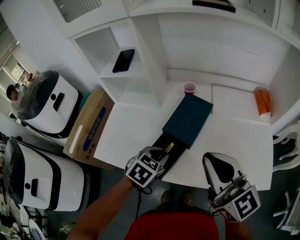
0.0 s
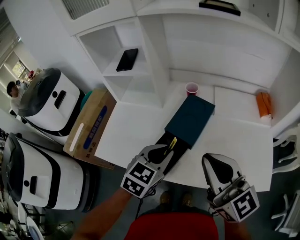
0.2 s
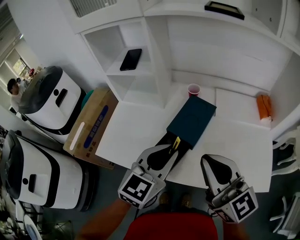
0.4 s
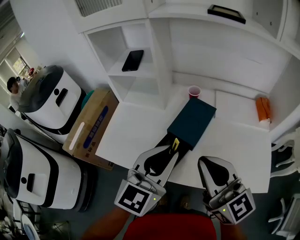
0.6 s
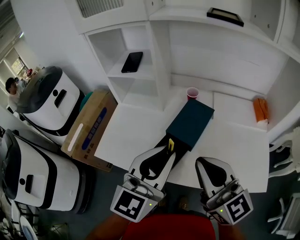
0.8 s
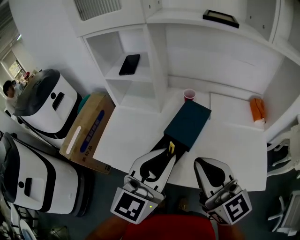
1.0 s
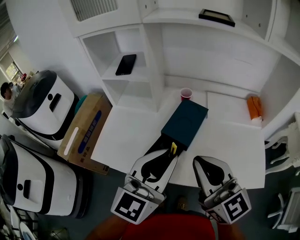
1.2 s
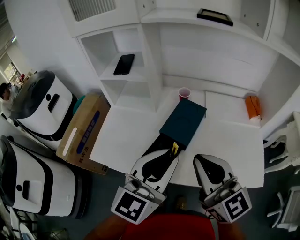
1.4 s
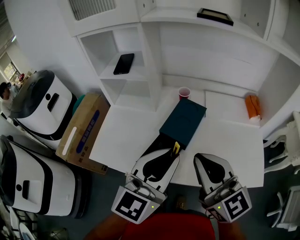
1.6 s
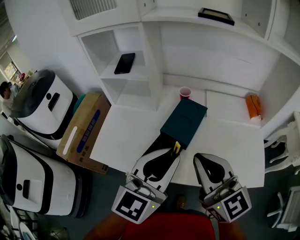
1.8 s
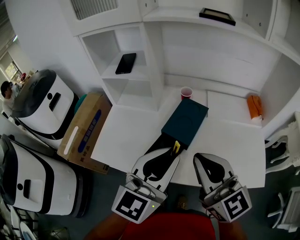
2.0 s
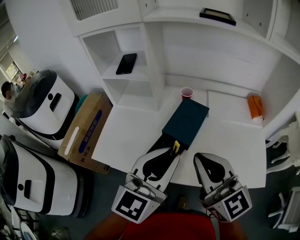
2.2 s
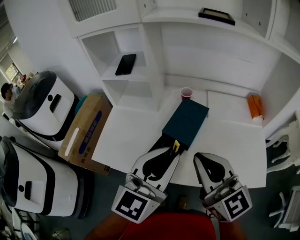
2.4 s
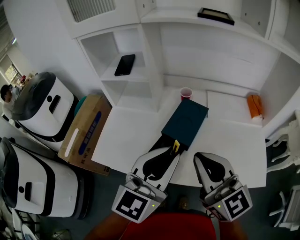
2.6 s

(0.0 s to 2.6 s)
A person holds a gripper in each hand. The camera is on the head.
0.0 s - 1.2 s: The left gripper shifts some 20 cm upward, and tilts its fingers approximately 50 degrees upward.
1.2 s - 2.6 s: Neither gripper changes place.

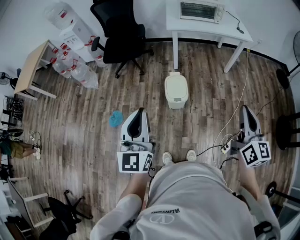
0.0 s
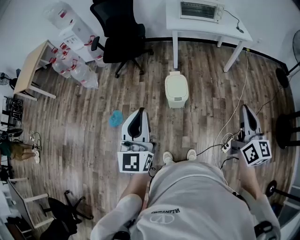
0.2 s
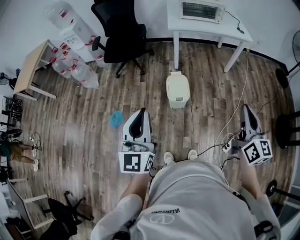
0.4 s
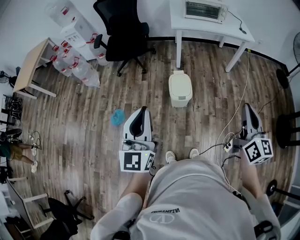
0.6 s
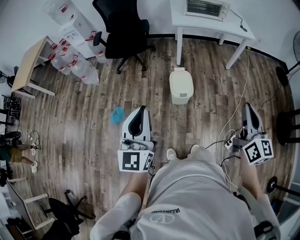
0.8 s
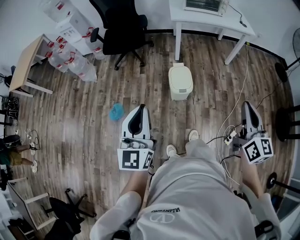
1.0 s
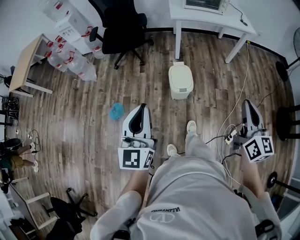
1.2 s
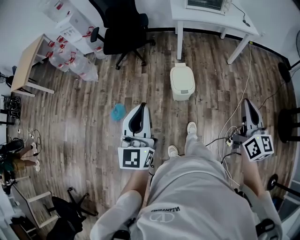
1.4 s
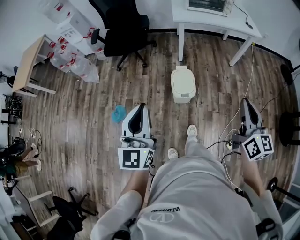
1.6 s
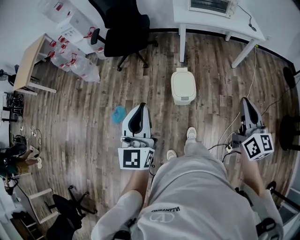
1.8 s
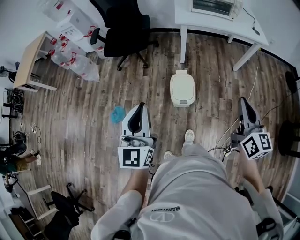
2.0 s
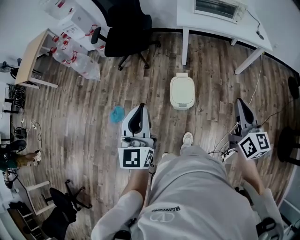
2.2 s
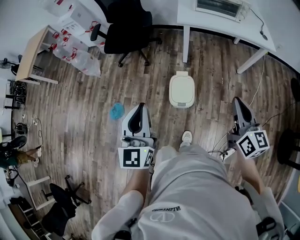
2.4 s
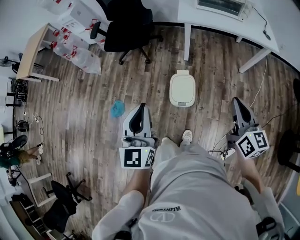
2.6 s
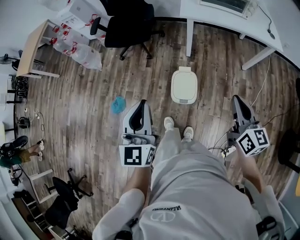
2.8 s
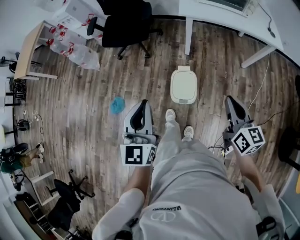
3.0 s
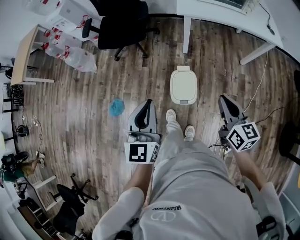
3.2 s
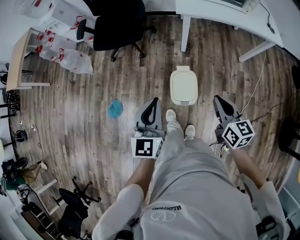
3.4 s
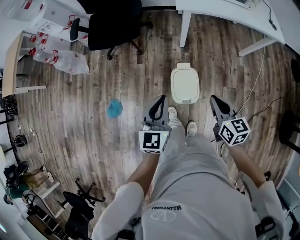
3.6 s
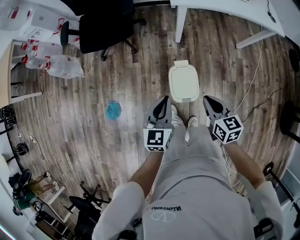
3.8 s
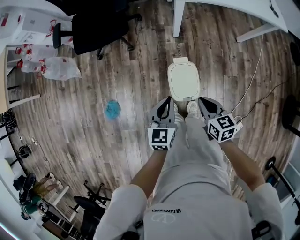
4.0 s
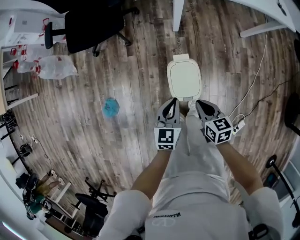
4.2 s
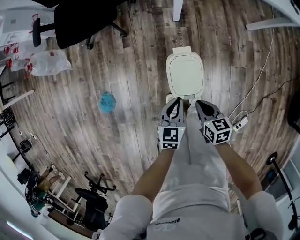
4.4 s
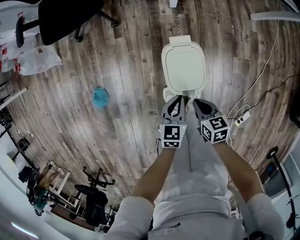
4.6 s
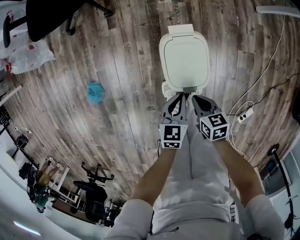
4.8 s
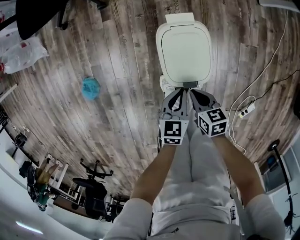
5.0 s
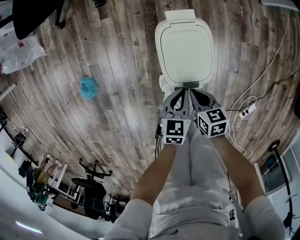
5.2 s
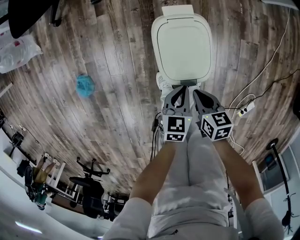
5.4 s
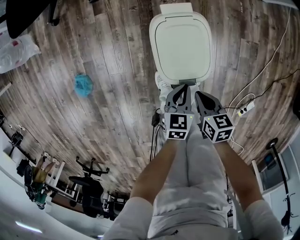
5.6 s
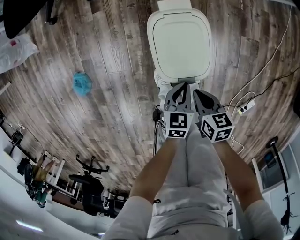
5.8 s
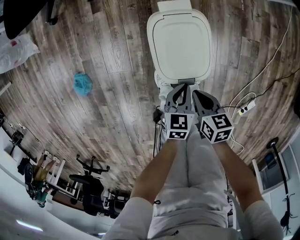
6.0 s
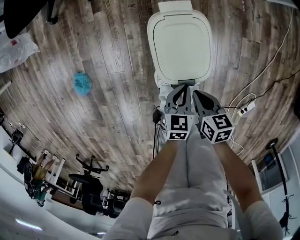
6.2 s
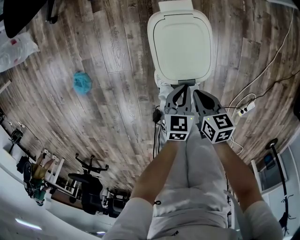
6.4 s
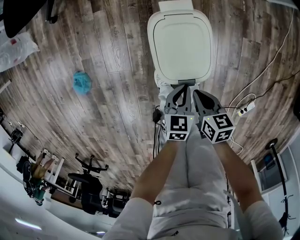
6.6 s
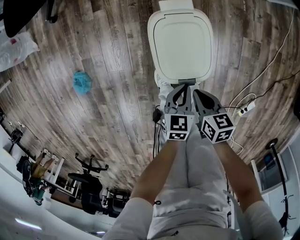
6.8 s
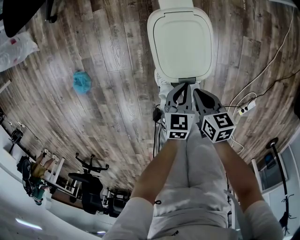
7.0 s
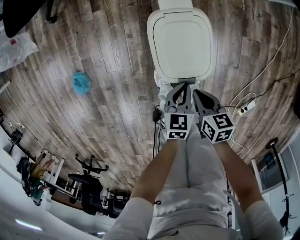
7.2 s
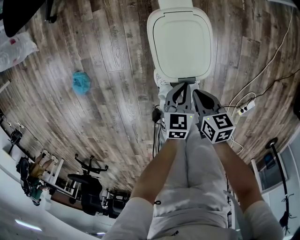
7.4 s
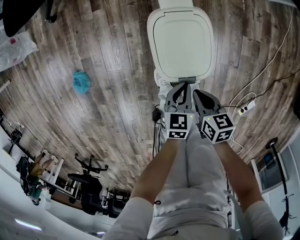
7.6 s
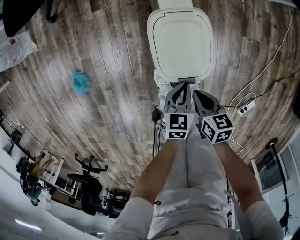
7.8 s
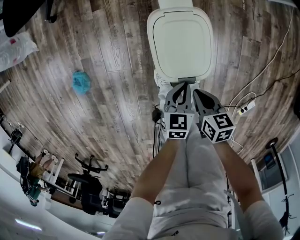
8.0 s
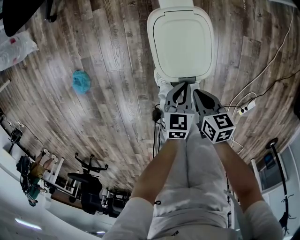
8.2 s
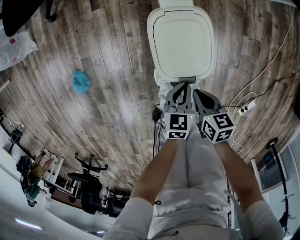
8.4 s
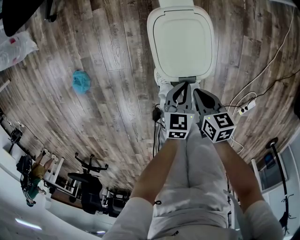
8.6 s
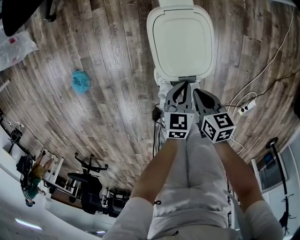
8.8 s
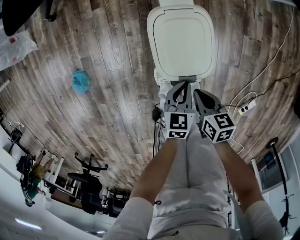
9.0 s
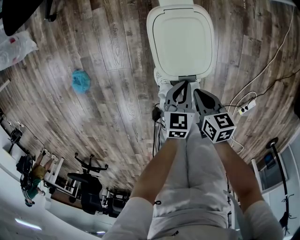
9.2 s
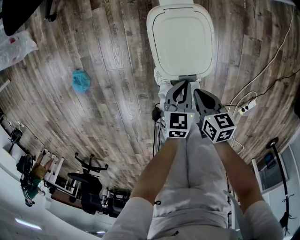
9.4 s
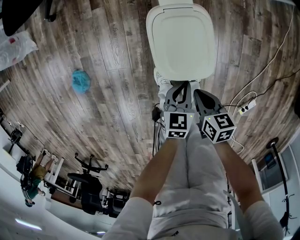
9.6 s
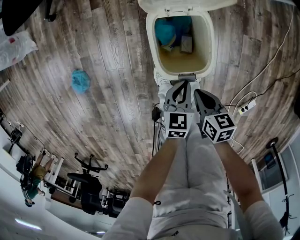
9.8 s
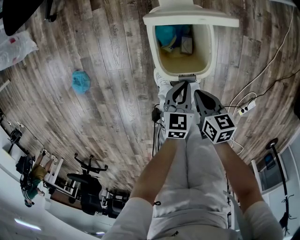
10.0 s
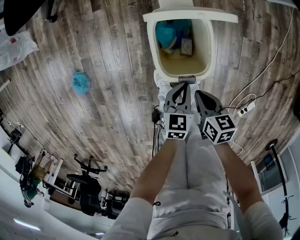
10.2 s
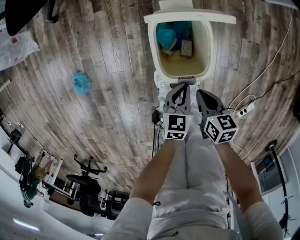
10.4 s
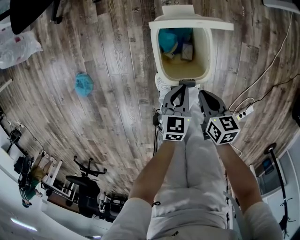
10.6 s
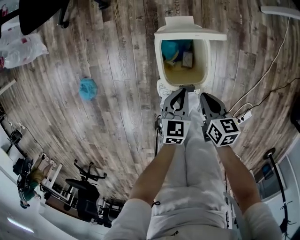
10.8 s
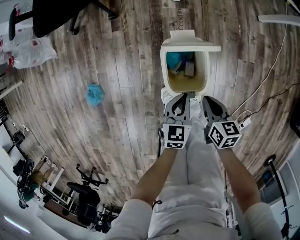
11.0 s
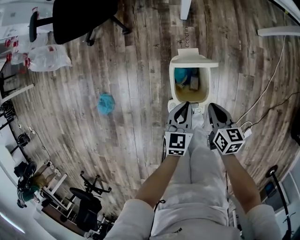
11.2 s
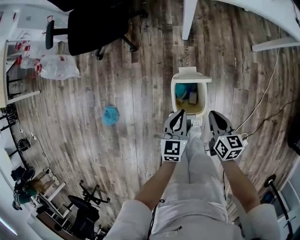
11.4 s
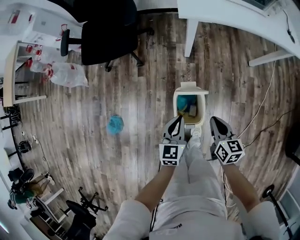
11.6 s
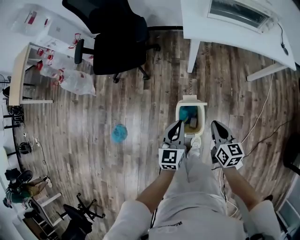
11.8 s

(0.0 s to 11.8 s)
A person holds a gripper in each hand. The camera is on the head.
0.0 s - 1.4 s: Both grippers travel together to the left, about 5 cm.
1.4 s - 3.0 s: The left gripper shifts about 25 cm forward and to the right. The right gripper travels forward by approximately 25 cm, and turns by approximately 20 degrees.
3.0 s - 4.4 s: The grippers both shift downward by approximately 40 cm. The left gripper tilts its fingers roughly 30 degrees downward. The right gripper points its fingers approximately 30 degrees further downward.
4.4 s - 6.0 s: Both grippers move downward, about 25 cm.
6.0 s - 8.8 s: The two grippers keep their place.
8.8 s - 10.4 s: The grippers make only small movements.
10.4 s - 11.8 s: Both grippers move upward, roughly 40 cm. The right gripper turns by some 30 degrees. Meanwhile the left gripper swivels some 30 degrees.

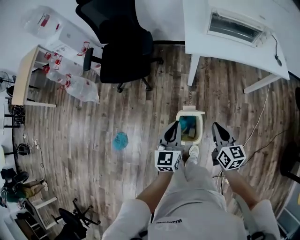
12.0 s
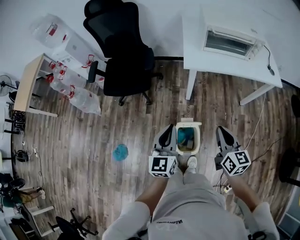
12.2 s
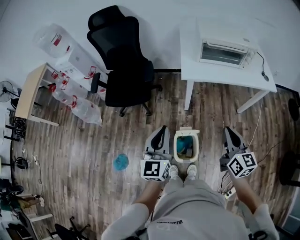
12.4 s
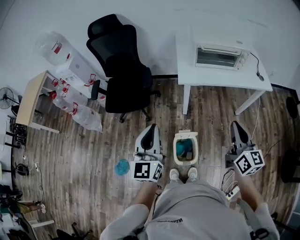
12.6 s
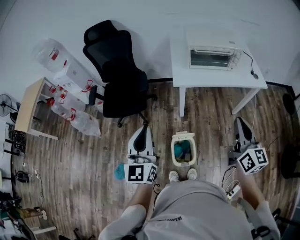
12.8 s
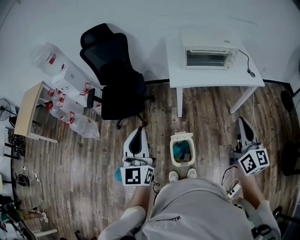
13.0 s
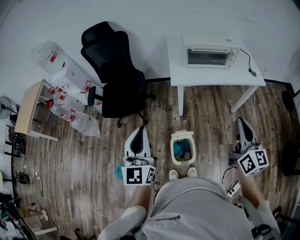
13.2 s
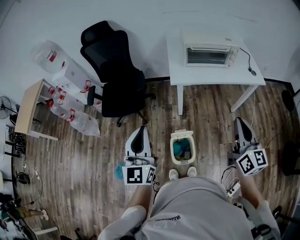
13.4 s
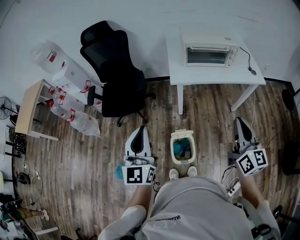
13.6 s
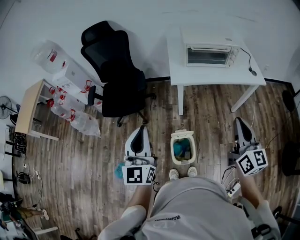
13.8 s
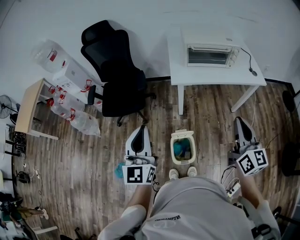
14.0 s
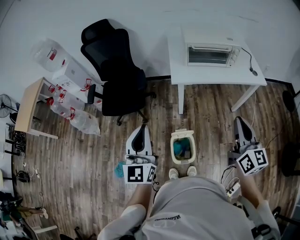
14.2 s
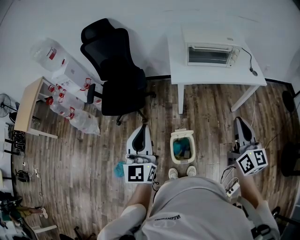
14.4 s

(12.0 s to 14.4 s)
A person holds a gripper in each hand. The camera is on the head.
12.0 s - 13.2 s: The left gripper travels upward by approximately 30 cm, and turns by some 30 degrees; the right gripper heads upward and to the right, covering some 30 cm, and swivels roughly 30 degrees.
13.2 s - 14.4 s: There are only small adjustments of the grippers.

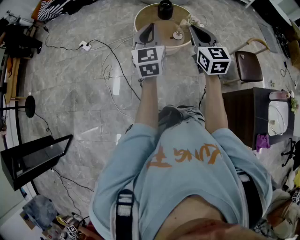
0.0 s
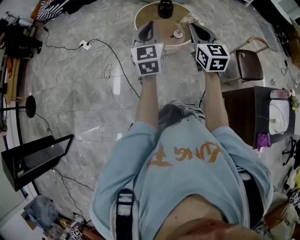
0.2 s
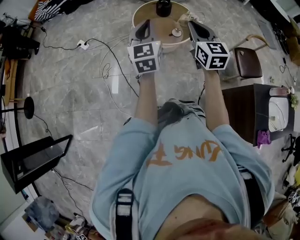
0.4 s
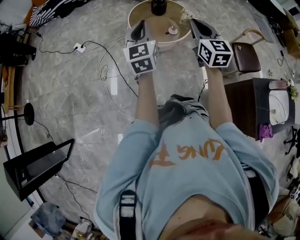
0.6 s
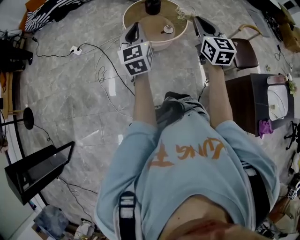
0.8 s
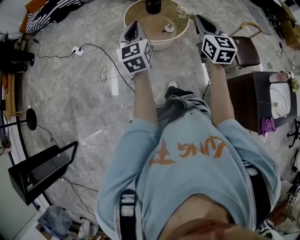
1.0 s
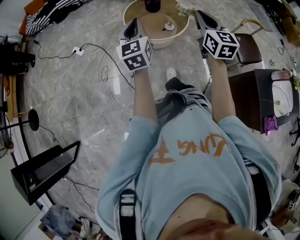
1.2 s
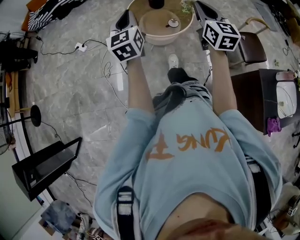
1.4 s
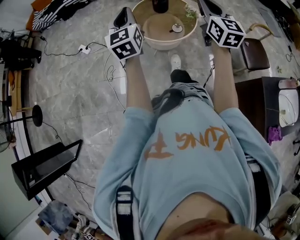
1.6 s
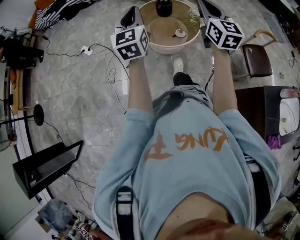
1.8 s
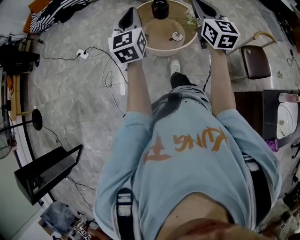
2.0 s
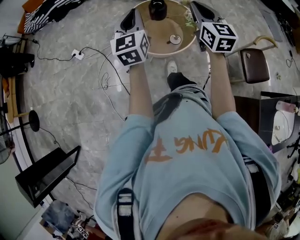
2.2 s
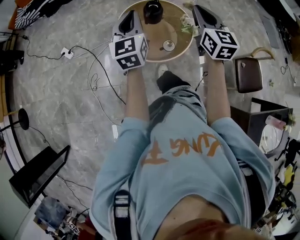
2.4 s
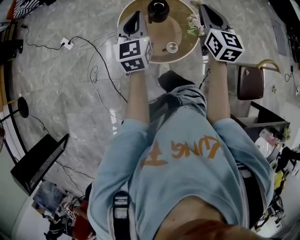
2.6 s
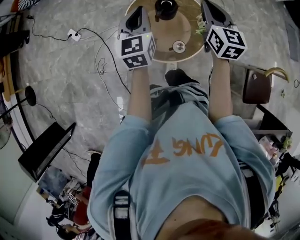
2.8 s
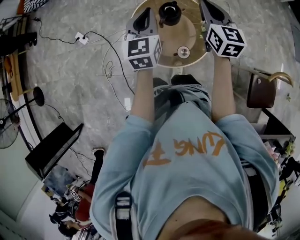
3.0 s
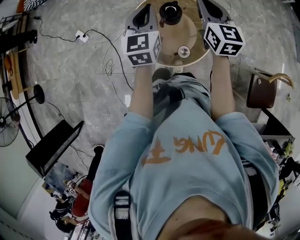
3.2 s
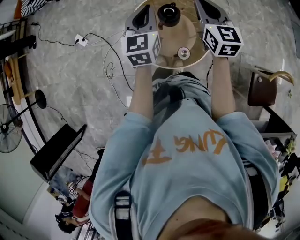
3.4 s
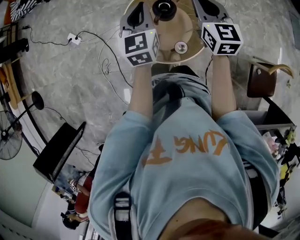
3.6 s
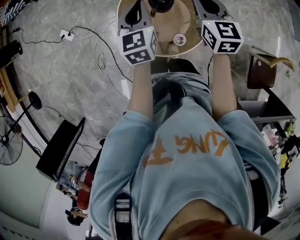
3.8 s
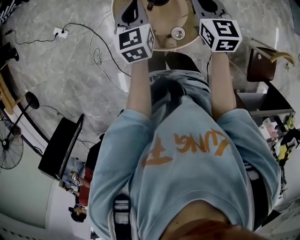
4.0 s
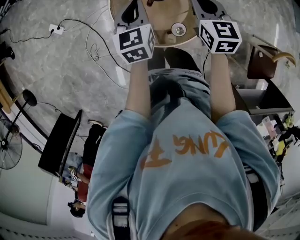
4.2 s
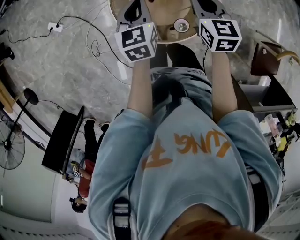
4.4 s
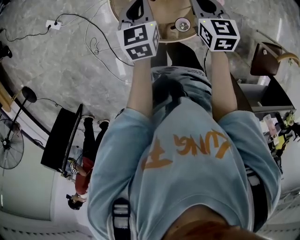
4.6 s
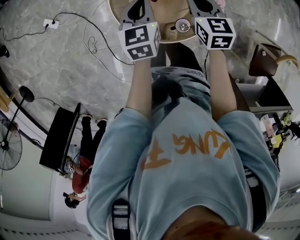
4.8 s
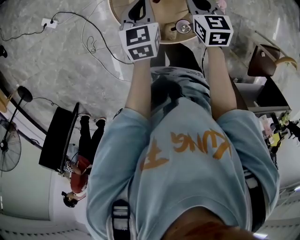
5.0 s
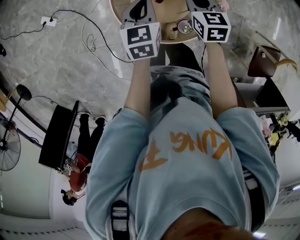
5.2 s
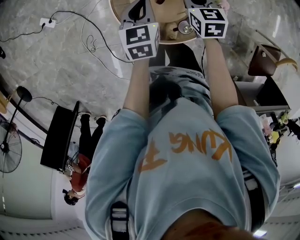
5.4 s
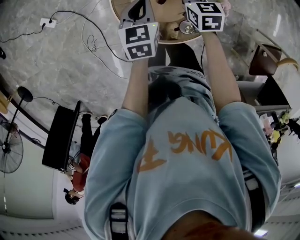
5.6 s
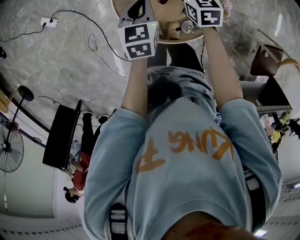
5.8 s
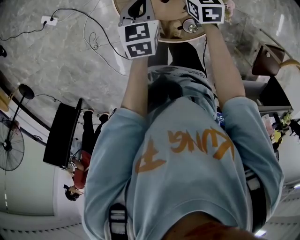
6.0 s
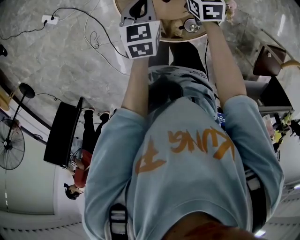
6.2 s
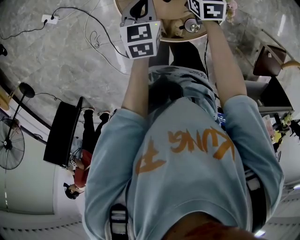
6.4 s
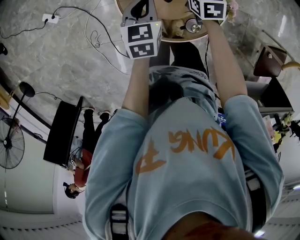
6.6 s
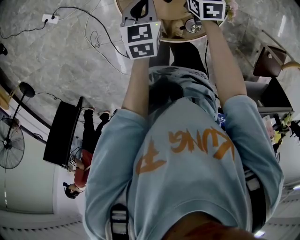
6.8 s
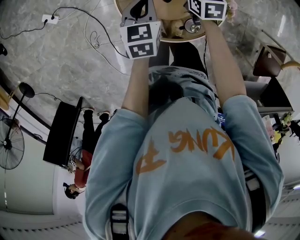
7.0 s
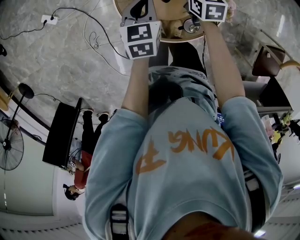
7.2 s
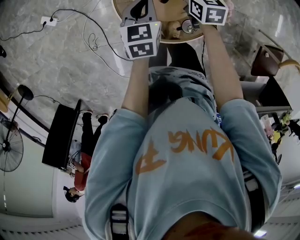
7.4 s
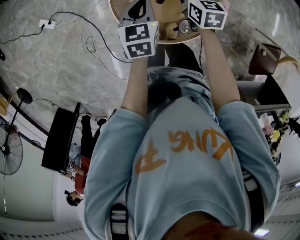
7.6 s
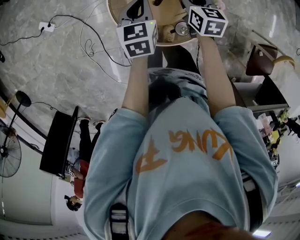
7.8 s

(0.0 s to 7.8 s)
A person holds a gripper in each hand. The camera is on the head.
0.0 s - 1.6 s: The right gripper heads forward and to the right, covering some 10 cm. The left gripper shifts about 10 cm forward.
1.6 s - 3.2 s: Both grippers are carried forward, approximately 50 cm.
3.2 s - 4.6 s: The grippers both shift downward by some 20 cm. The right gripper rotates roughly 20 degrees. The left gripper swivels some 20 degrees.
4.6 s - 6.2 s: The left gripper travels downward by approximately 5 cm. The right gripper heads downward, forward and to the left, covering roughly 15 cm.
6.2 s - 7.8 s: The right gripper changes place by some 5 cm, and opens.
